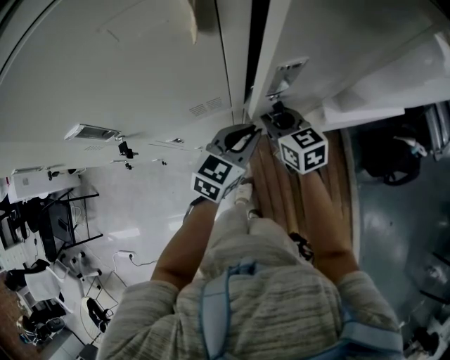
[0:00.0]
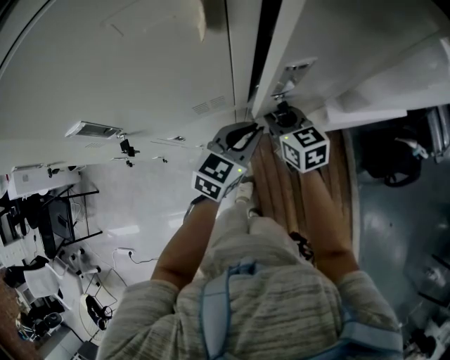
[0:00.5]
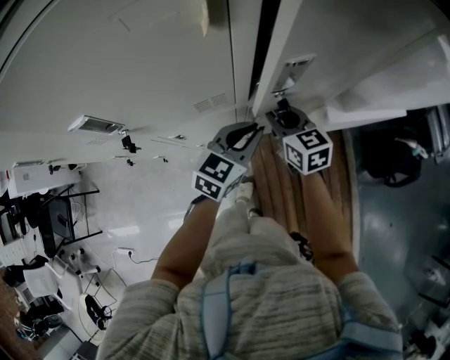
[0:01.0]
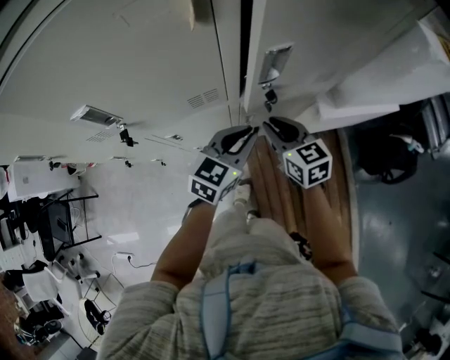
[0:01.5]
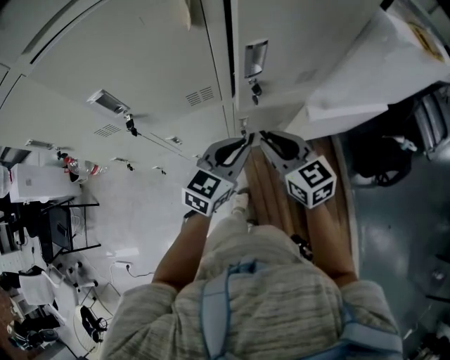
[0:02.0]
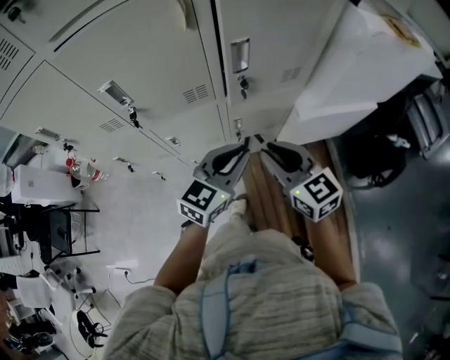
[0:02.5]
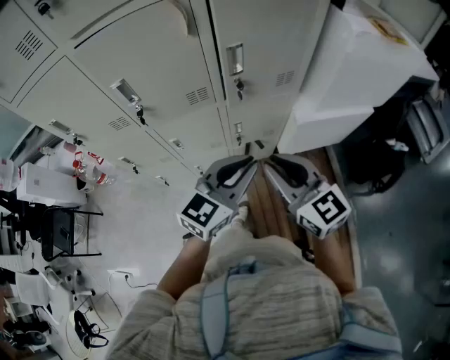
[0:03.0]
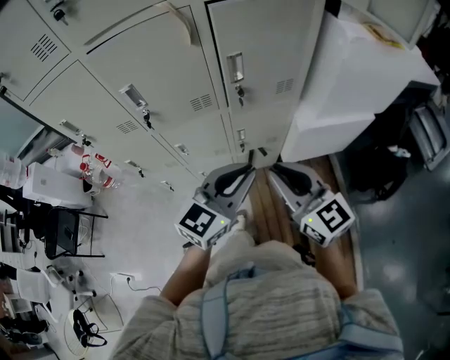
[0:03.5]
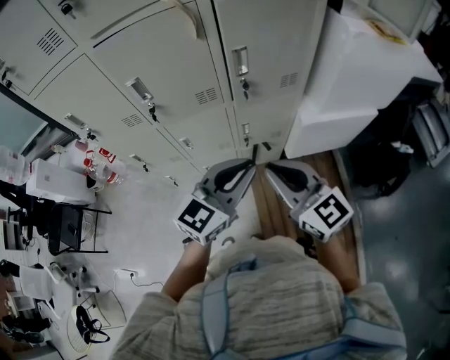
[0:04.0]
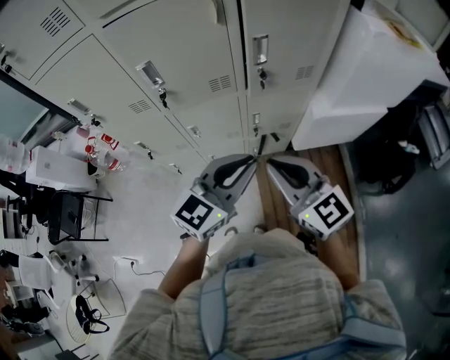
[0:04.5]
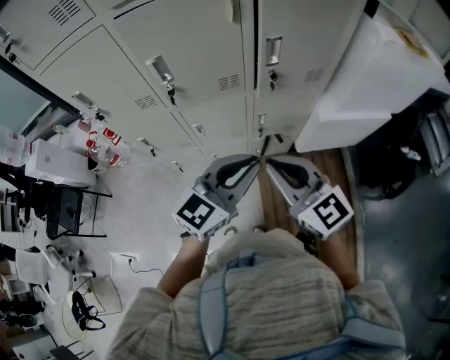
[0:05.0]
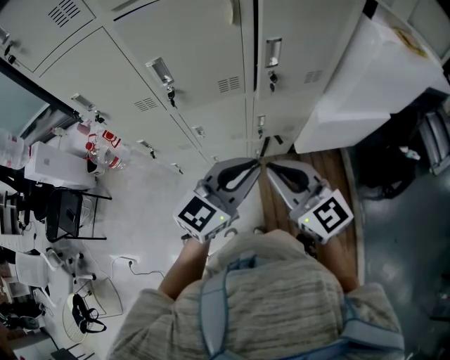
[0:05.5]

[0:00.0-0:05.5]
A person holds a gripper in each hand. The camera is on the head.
0:00.0 to 0:02.0: The left gripper heads backward and upward, covering about 10 cm, while the right gripper heads backward and upward, covering some 15 cm.
0:02.0 to 0:03.5: Both grippers move backward and upward, about 20 cm.
0:03.5 to 0:05.5: Both grippers move to the left, some 10 cm.

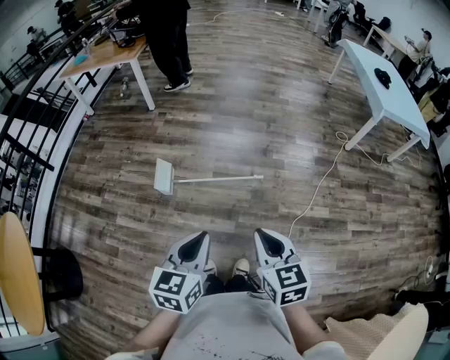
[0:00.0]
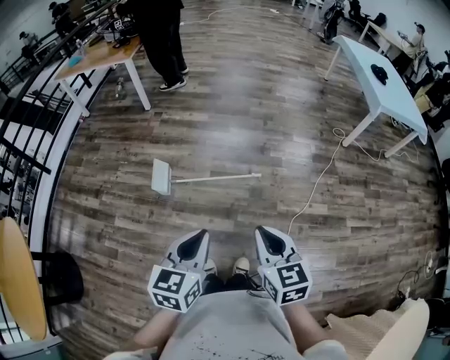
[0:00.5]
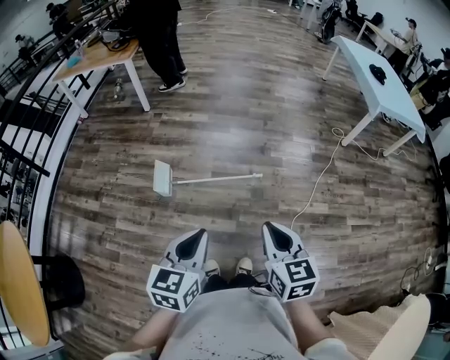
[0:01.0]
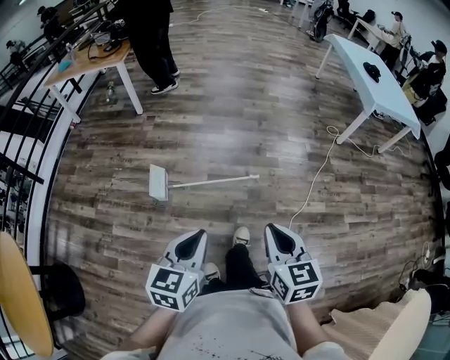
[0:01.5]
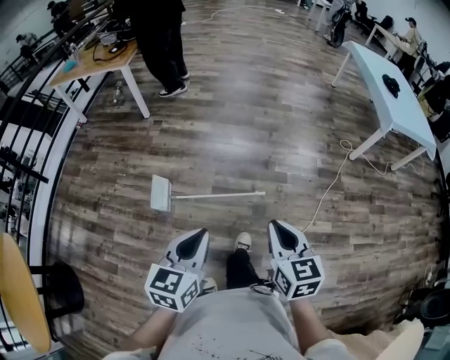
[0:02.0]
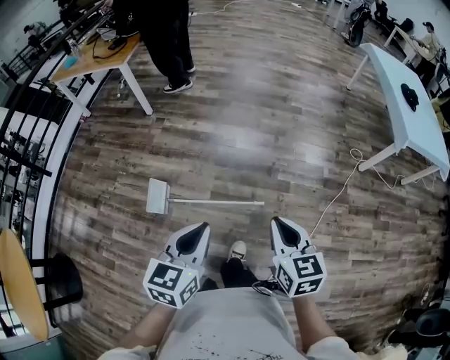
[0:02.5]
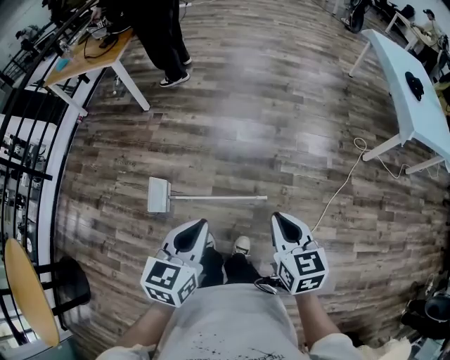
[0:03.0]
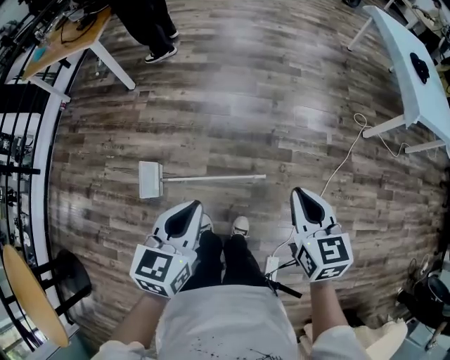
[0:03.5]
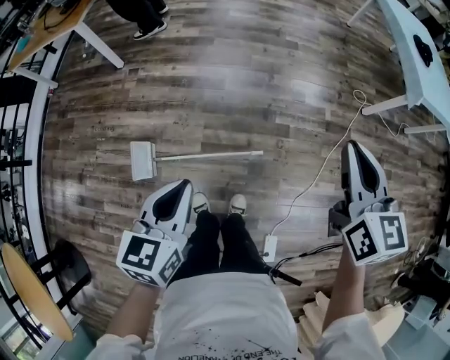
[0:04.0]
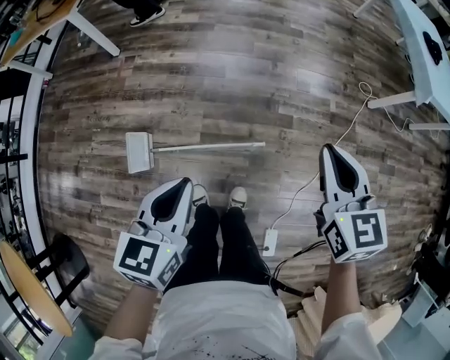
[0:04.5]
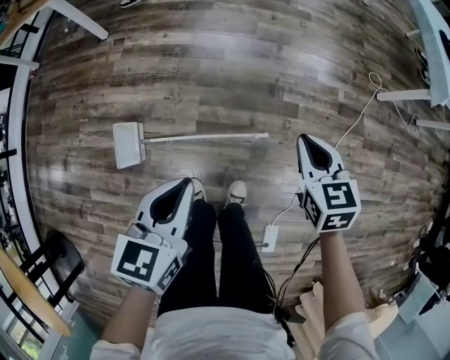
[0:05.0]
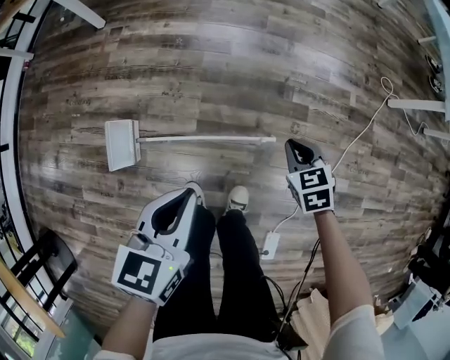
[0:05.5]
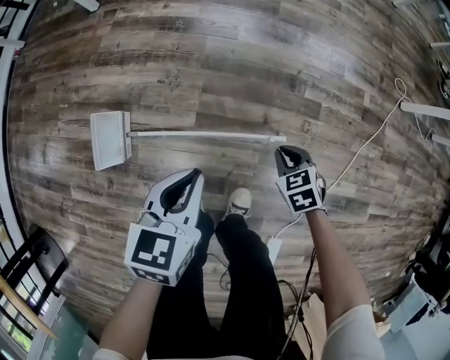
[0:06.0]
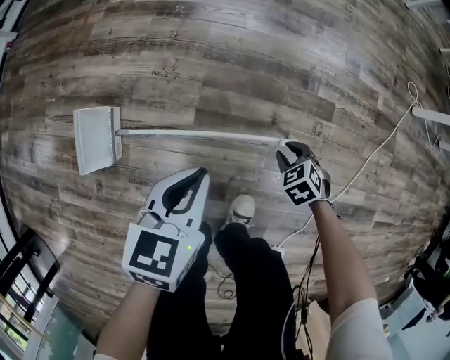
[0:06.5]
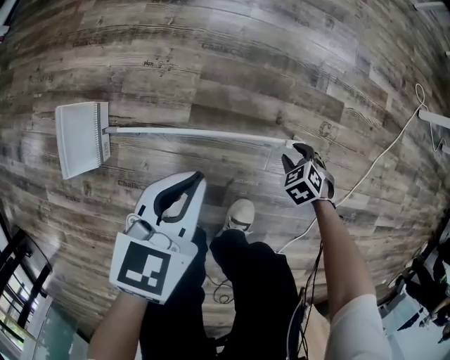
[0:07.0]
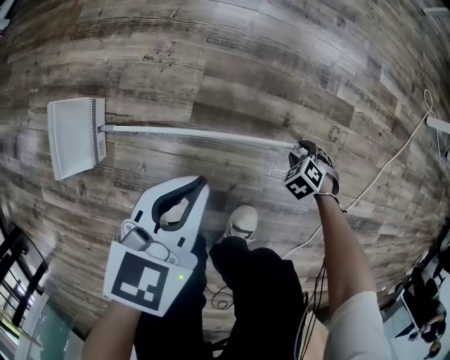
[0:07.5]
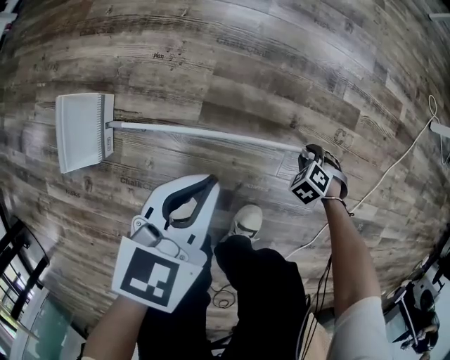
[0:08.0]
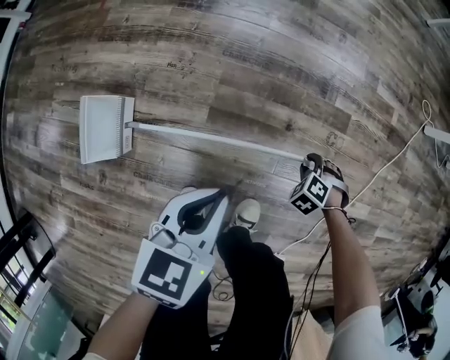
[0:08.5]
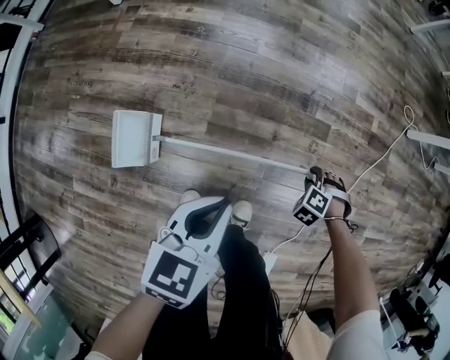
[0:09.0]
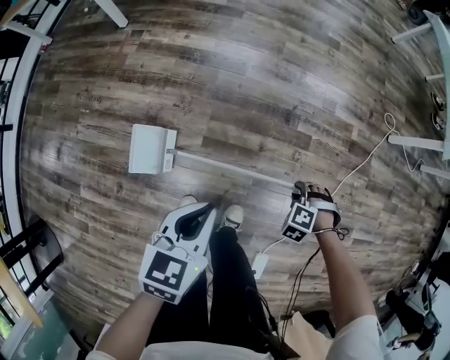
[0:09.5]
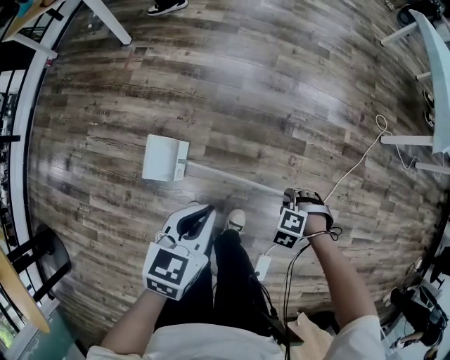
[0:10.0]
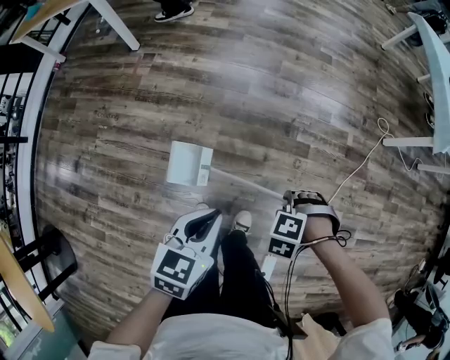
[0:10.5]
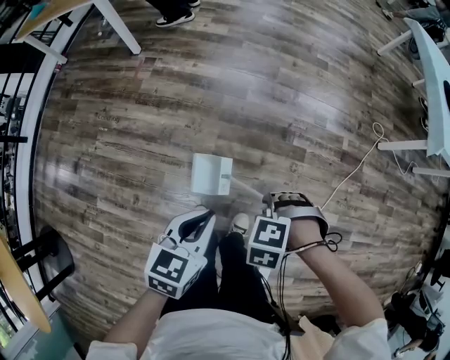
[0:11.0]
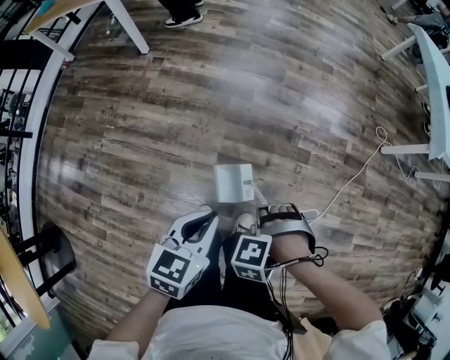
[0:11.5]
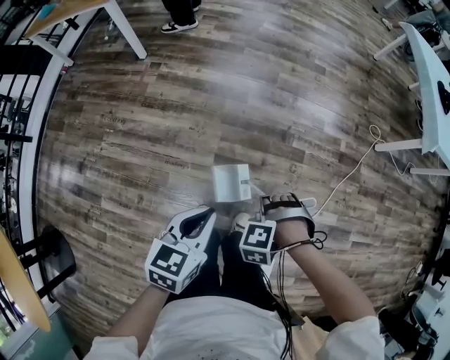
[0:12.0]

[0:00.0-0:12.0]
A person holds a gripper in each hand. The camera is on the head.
0:00.0 to 0:02.0: The grippers both shift forward by some 20 cm.
0:02.0 to 0:04.0: The grippers both shift forward by some 30 cm.
0:04.0 to 0:06.0: The right gripper shifts some 70 cm downward, and angles its fingers downward, by some 50 degrees. Meanwhile the left gripper heads downward, covering approximately 40 cm.
0:06.0 to 0:08.0: The right gripper travels downward by about 30 cm, rotates about 40 degrees, and opens its fingers. The left gripper goes some 20 cm downward.
0:08.0 to 0:10.0: Both grippers move upward, some 40 cm. The right gripper rotates roughly 20 degrees.
0:10.0 to 0:12.0: The right gripper shifts about 15 cm upward; the left gripper moves upward, approximately 10 cm.

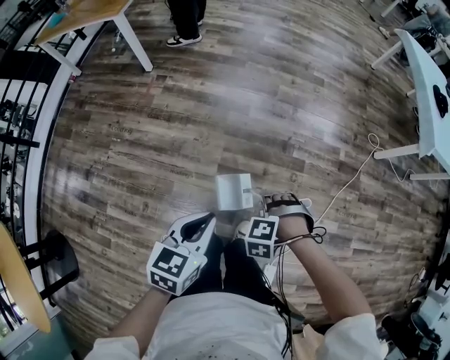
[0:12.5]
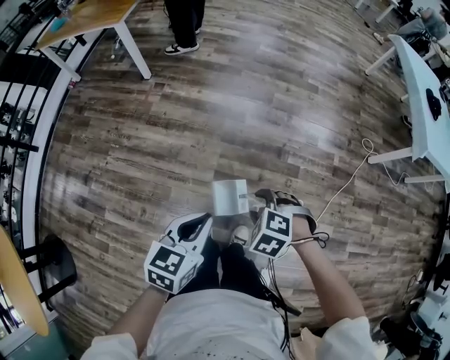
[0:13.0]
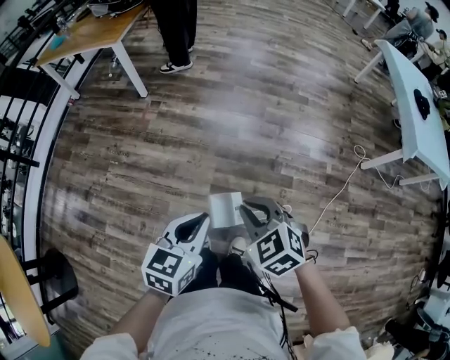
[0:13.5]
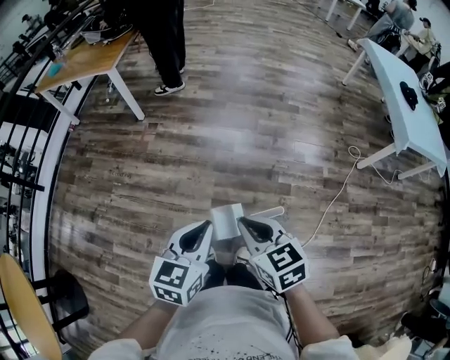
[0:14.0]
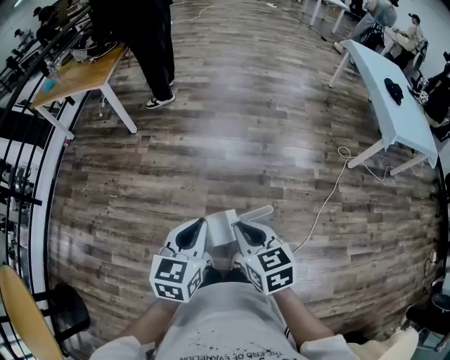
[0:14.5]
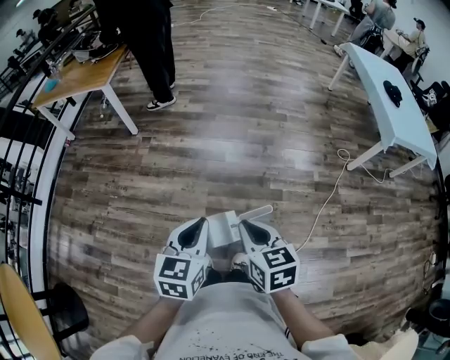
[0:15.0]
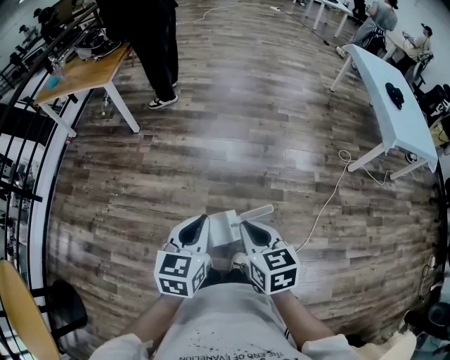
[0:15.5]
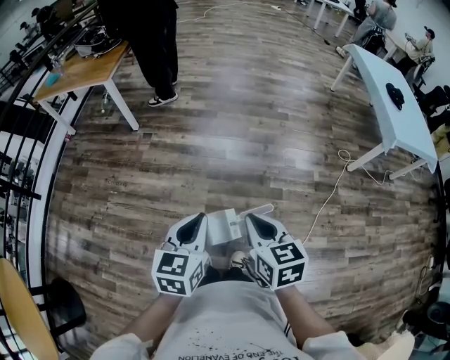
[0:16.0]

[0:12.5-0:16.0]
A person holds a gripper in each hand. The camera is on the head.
0:12.5 to 0:14.5: The left gripper moves upward, approximately 15 cm; the right gripper is displaced upward by roughly 25 cm, tilts its fingers roughly 50 degrees upward, and closes.
0:14.5 to 0:16.0: The grippers make only small movements.

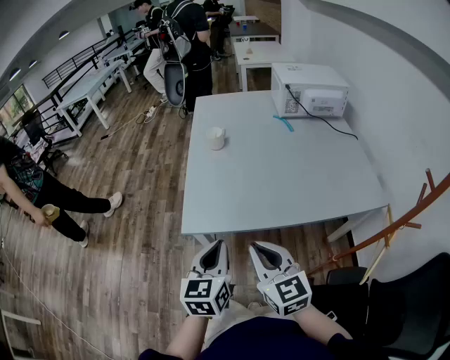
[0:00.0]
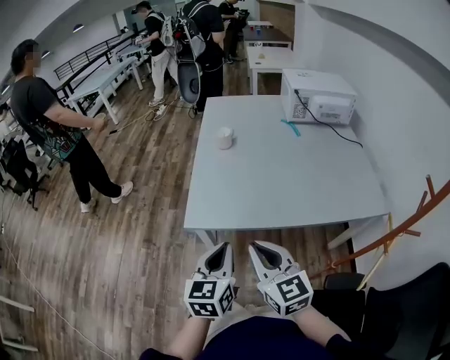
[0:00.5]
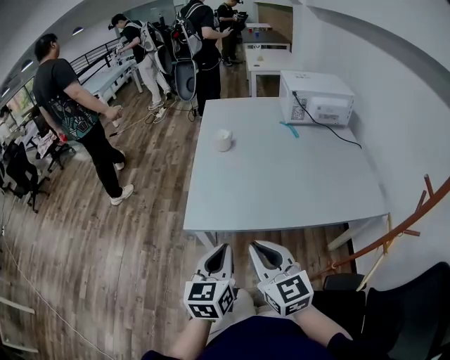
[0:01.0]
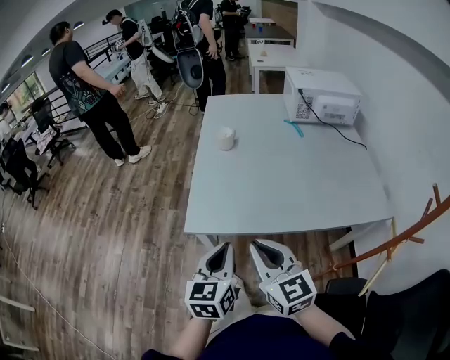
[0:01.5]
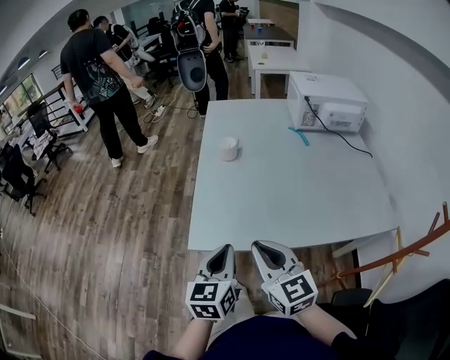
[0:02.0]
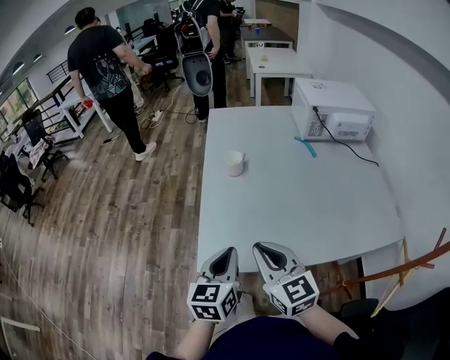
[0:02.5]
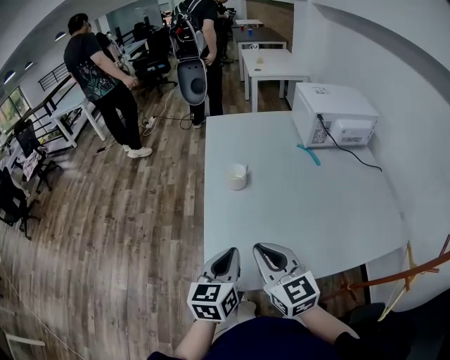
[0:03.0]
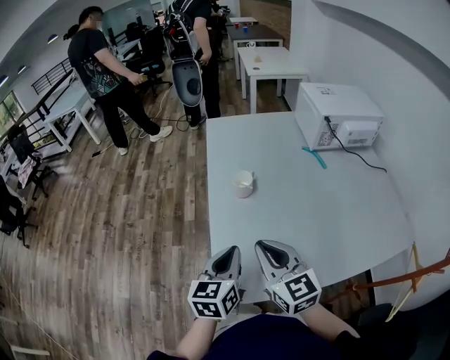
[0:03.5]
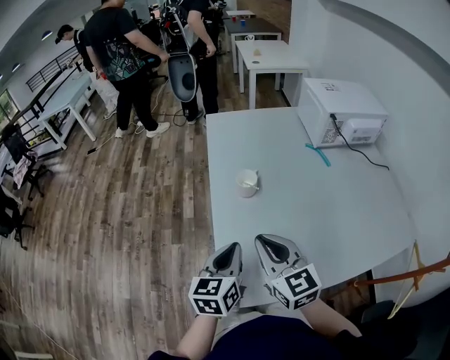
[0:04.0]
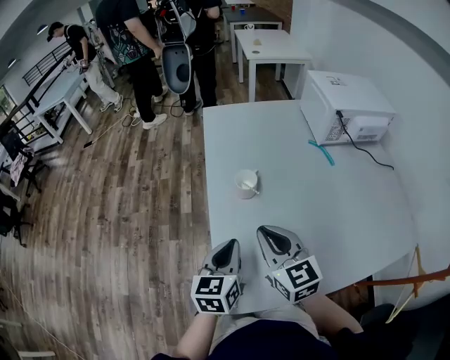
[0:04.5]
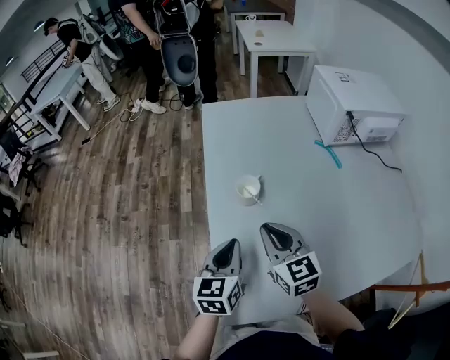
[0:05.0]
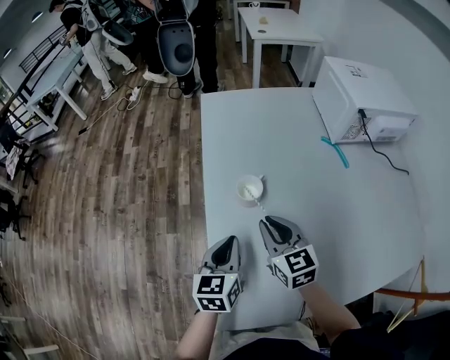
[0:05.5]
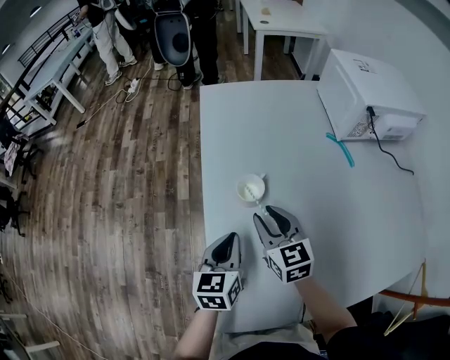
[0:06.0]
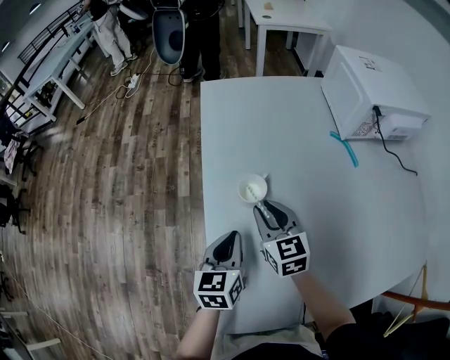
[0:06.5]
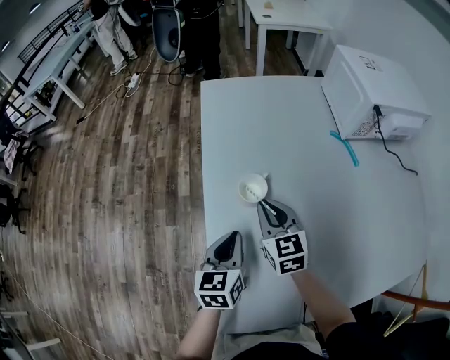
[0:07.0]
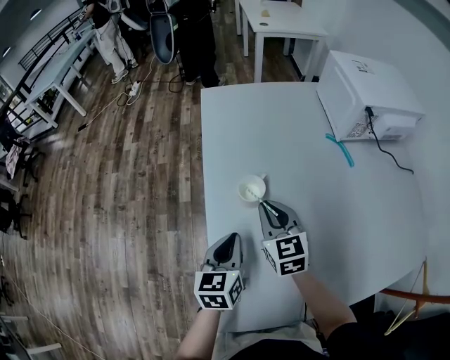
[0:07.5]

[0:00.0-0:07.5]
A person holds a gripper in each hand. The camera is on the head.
0:00.0 to 0:02.0: The two grippers go approximately 5 cm forward.
0:02.0 to 0:04.0: The grippers both shift forward by about 25 cm.
0:04.0 to 0:05.5: Both grippers move forward and downward, some 15 cm.
0:05.5 to 0:07.5: The right gripper moves forward, roughly 5 cm, and opens, then closes again.
